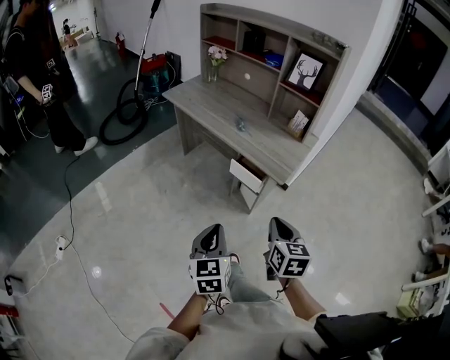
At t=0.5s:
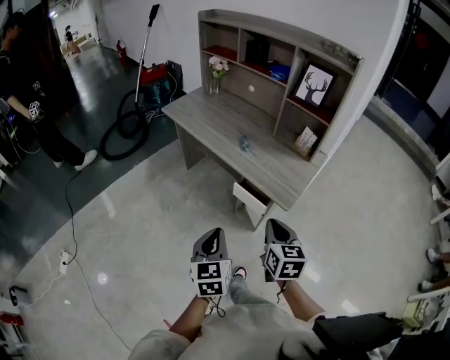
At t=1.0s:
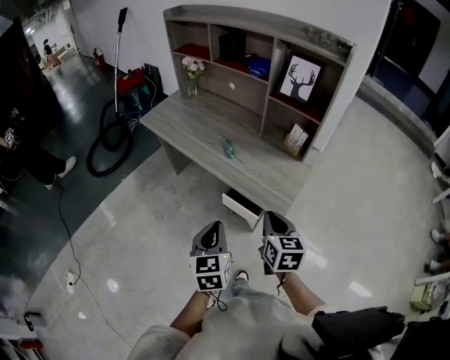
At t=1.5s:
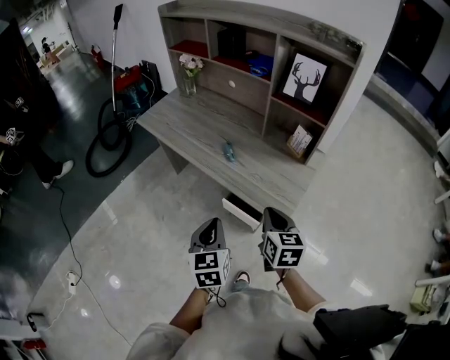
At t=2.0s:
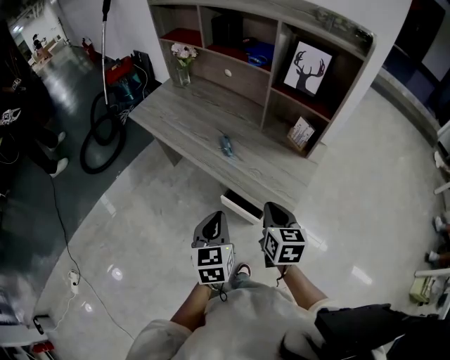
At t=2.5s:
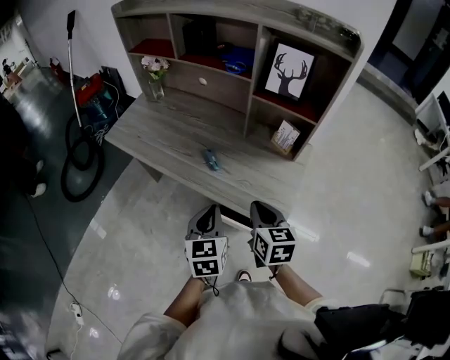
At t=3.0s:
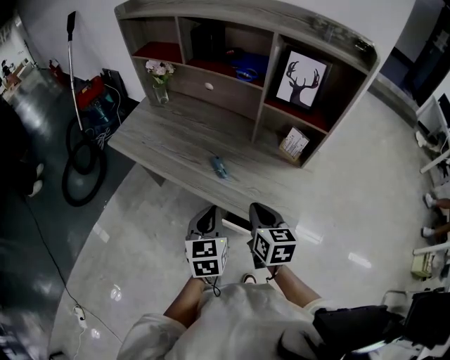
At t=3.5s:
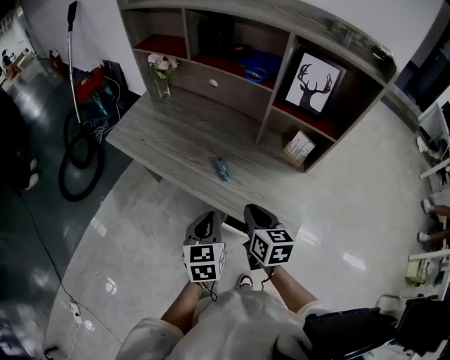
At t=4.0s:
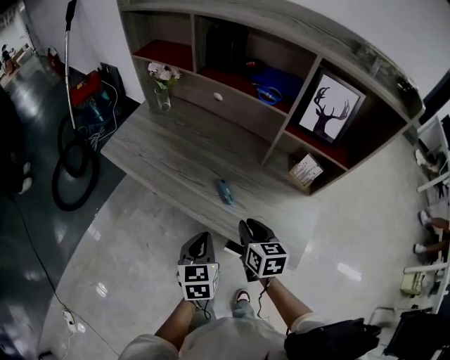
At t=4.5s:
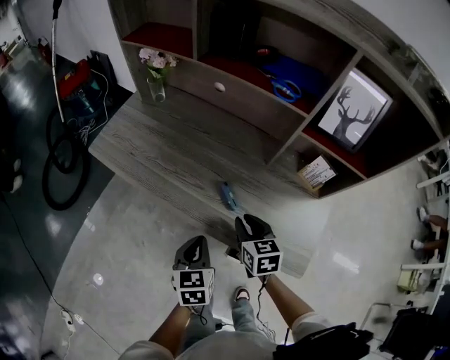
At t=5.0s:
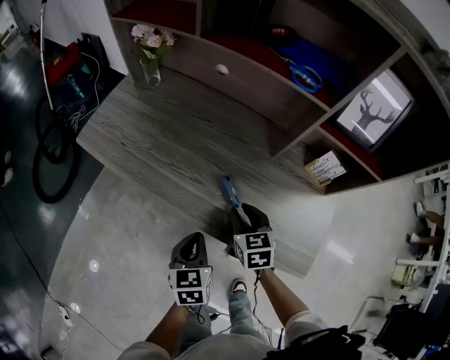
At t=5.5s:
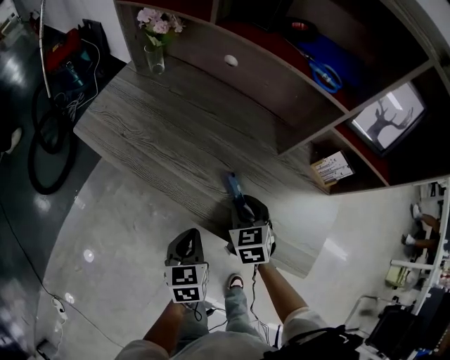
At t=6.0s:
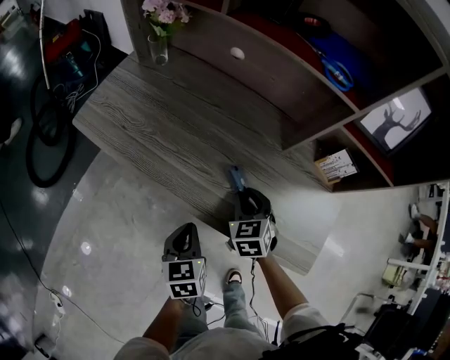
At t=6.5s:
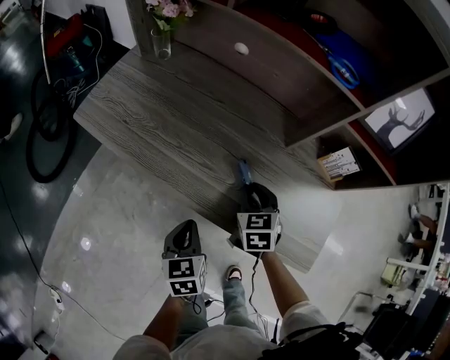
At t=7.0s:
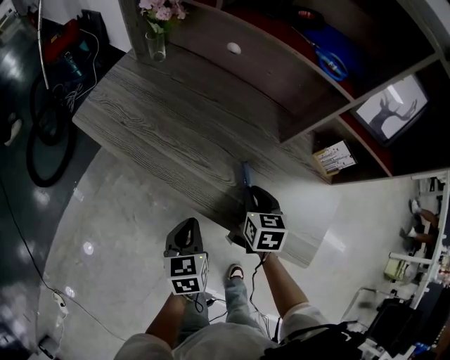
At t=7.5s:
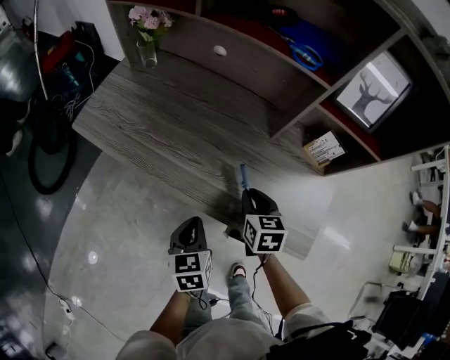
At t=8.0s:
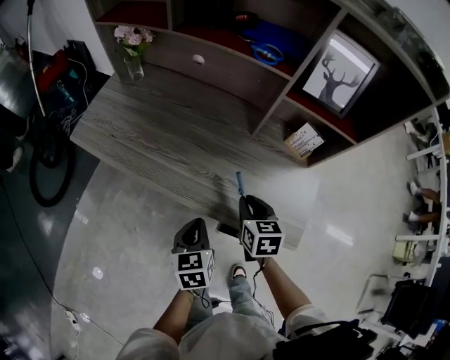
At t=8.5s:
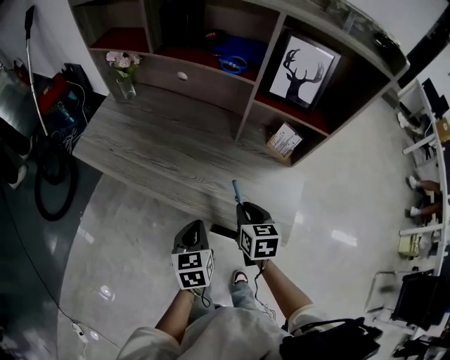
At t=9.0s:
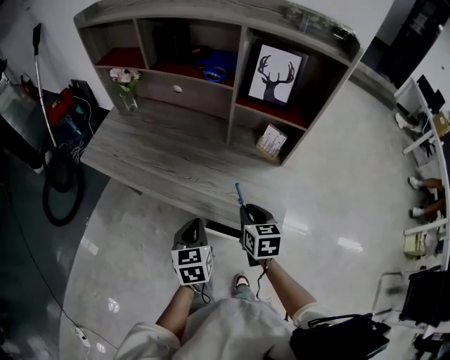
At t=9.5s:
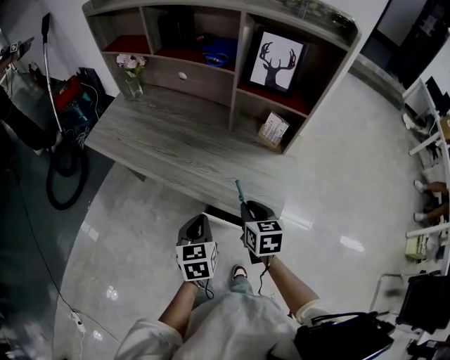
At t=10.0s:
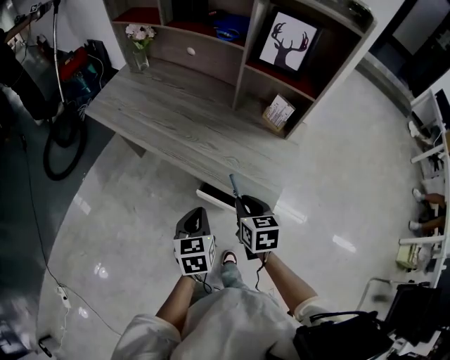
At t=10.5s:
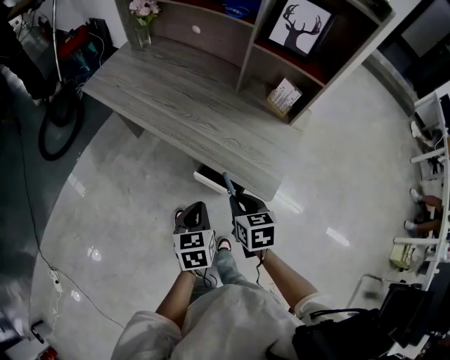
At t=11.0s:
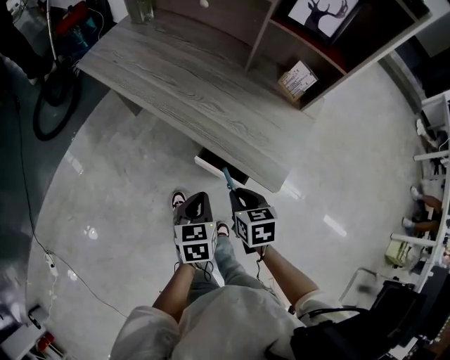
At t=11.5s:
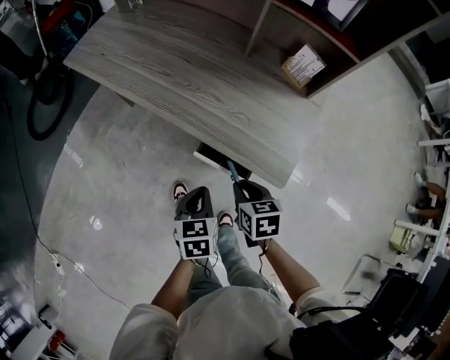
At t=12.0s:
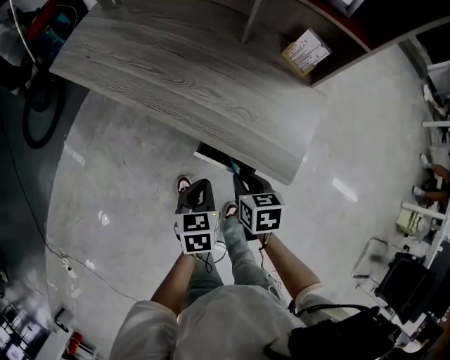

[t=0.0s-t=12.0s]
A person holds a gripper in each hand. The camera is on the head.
t=0.0s to t=2.0s: The grippers both shift forward by some 30 cm.
t=2.0s to t=4.0s: Both grippers travel together forward and to the left, approximately 20 cm.
t=4.0s to t=6.0s: The left gripper is displaced downward, to the left and forward by about 15 cm. The right gripper is displaced downward and forward by some 15 cm, and rotates approximately 40 degrees.
t=6.0s to t=8.0s: The left gripper goes about 5 cm to the right. The right gripper travels backward, to the right and upward by approximately 10 cm, and swivels about 30 degrees.
t=8.0s to t=10.0s: The two grippers go some 15 cm backward and to the right.
t=10.0s to t=12.0s: Both grippers travel together downward, some 15 cm.

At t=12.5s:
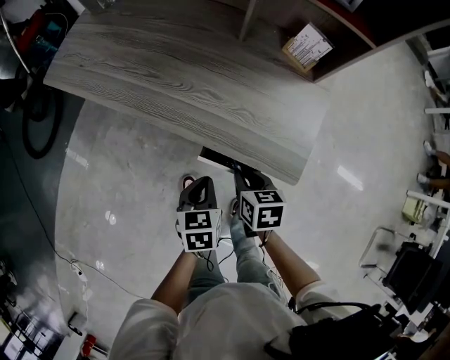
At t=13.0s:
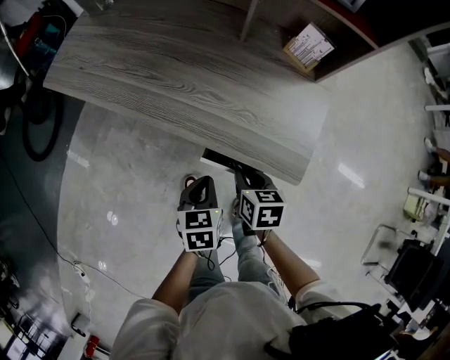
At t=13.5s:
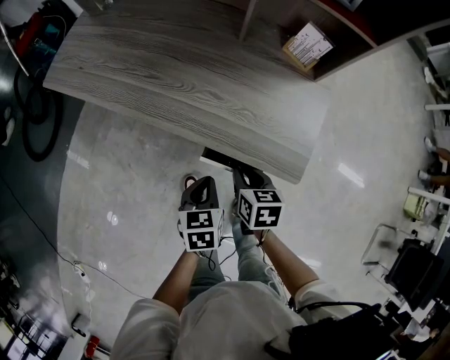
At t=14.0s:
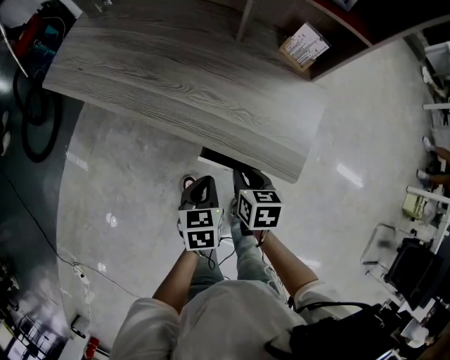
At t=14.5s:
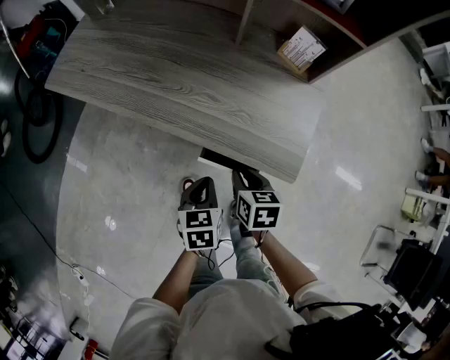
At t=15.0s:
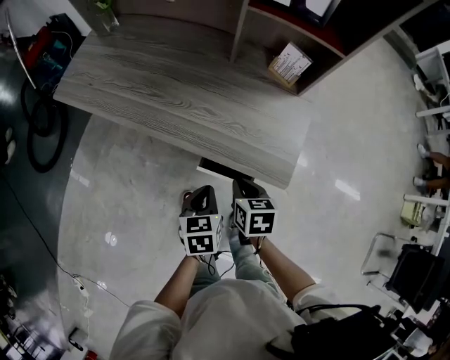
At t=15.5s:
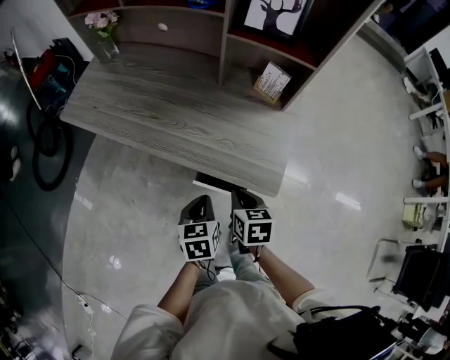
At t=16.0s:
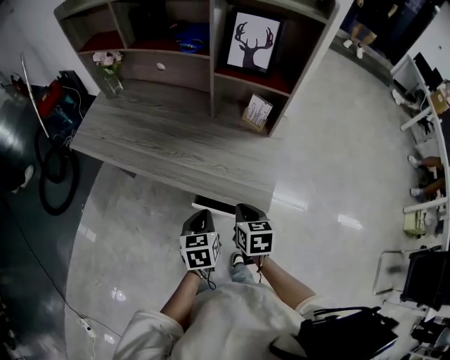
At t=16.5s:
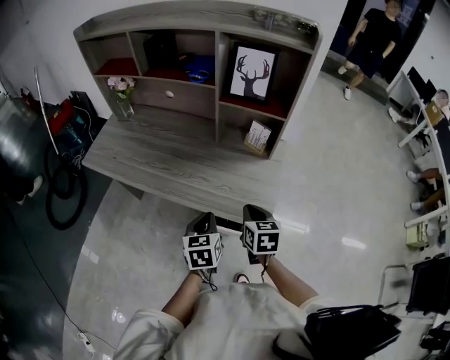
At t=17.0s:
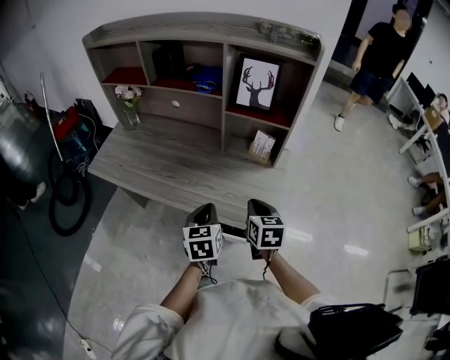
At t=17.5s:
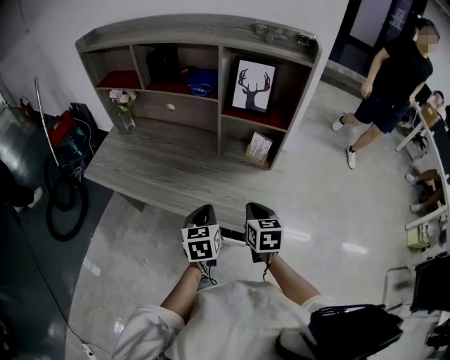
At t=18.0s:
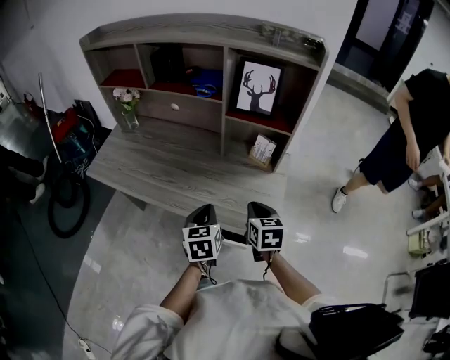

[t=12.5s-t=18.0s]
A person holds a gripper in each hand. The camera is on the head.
t=12.5s to t=14.5s: The grippers move only a little.
t=14.5s to t=16.0s: Both grippers travel together upward, roughly 10 cm.
t=16.0s to t=18.0s: The right gripper goes some 10 cm upward and forward; the left gripper goes approximately 10 cm forward and upward.

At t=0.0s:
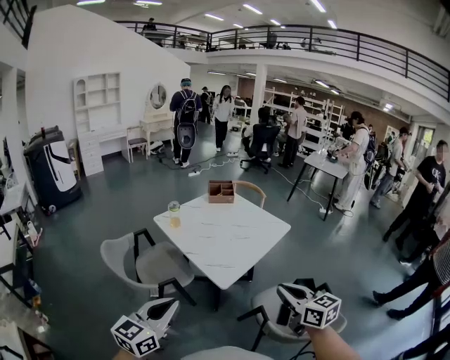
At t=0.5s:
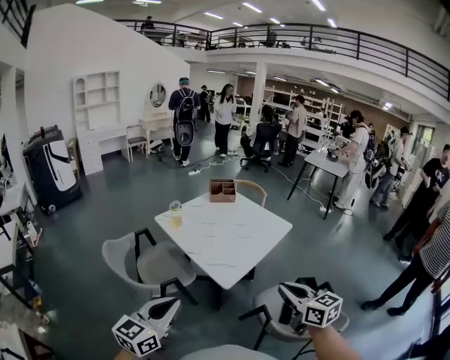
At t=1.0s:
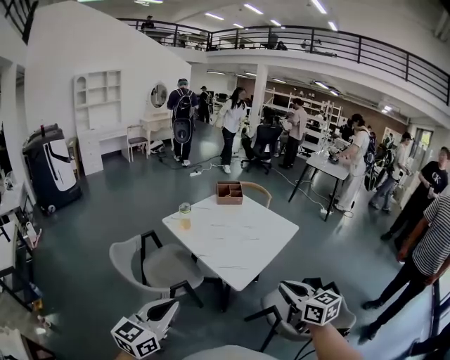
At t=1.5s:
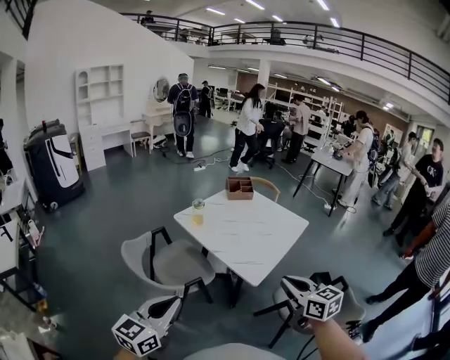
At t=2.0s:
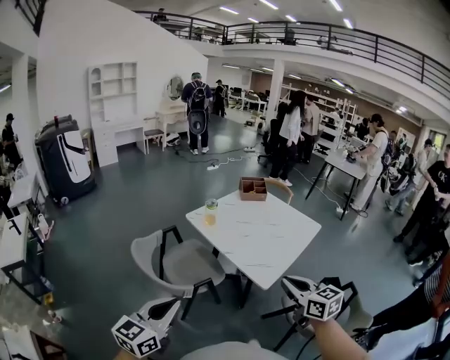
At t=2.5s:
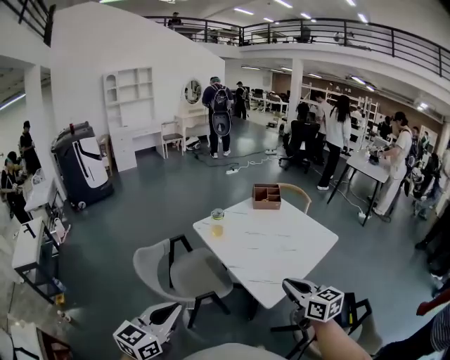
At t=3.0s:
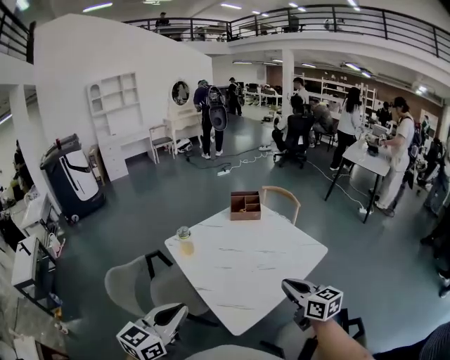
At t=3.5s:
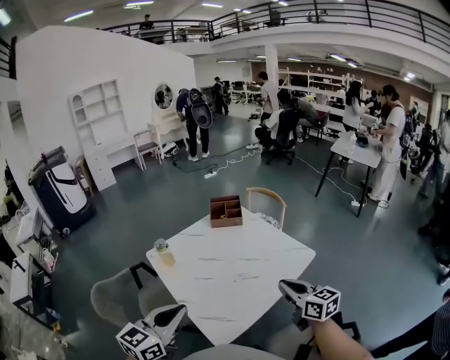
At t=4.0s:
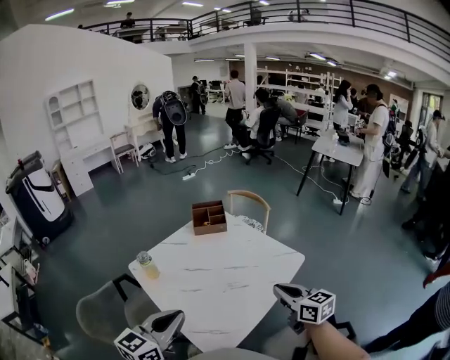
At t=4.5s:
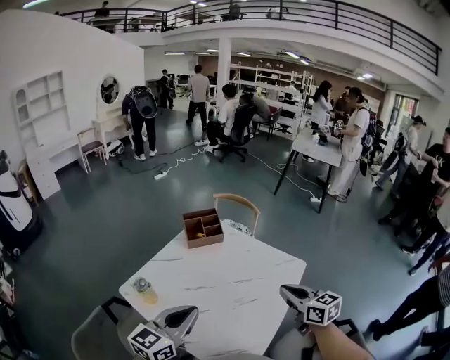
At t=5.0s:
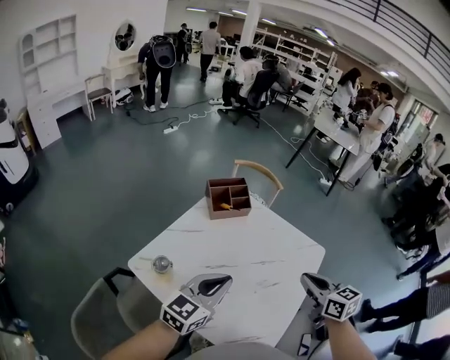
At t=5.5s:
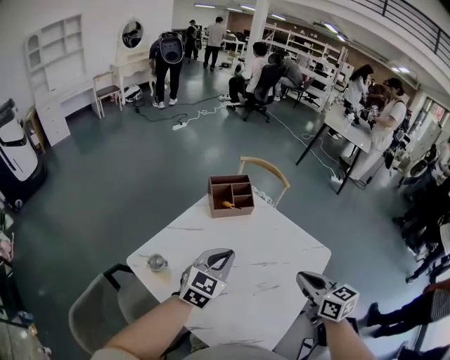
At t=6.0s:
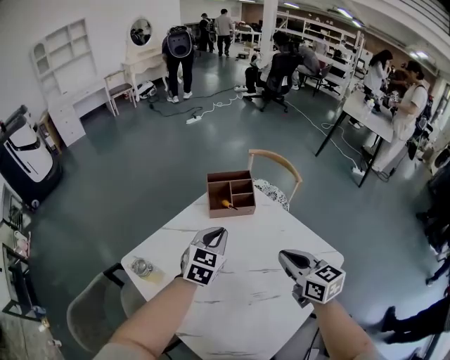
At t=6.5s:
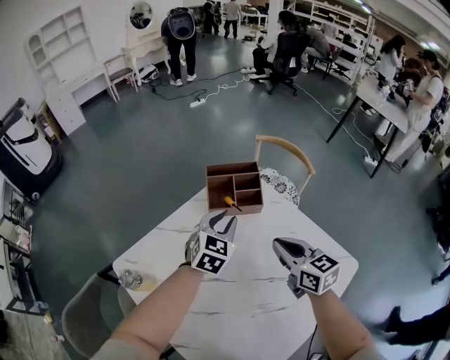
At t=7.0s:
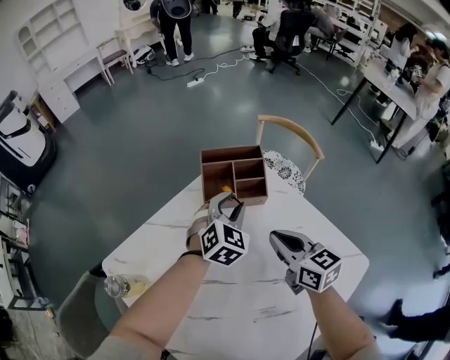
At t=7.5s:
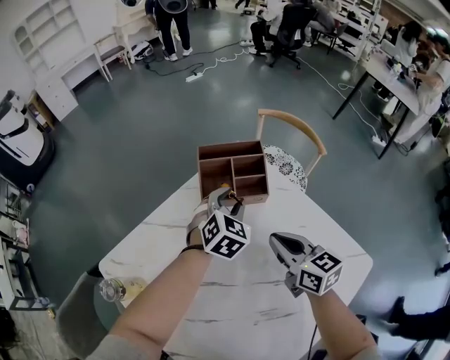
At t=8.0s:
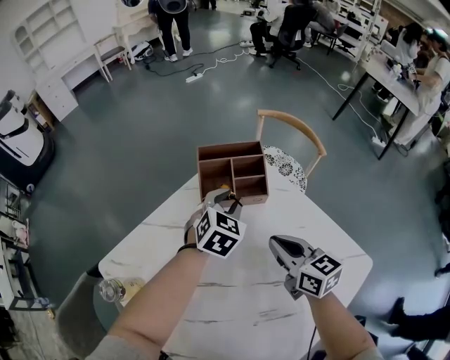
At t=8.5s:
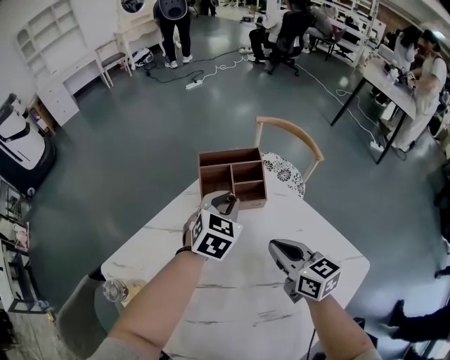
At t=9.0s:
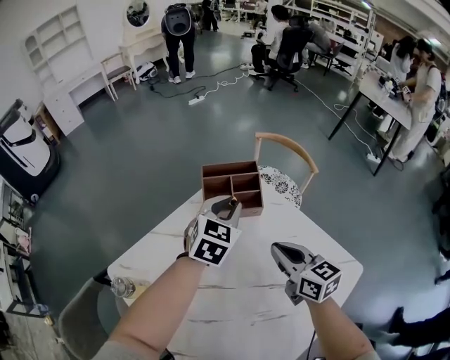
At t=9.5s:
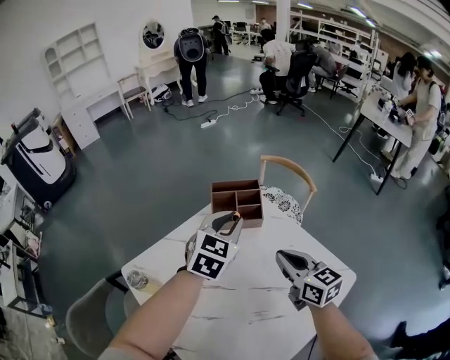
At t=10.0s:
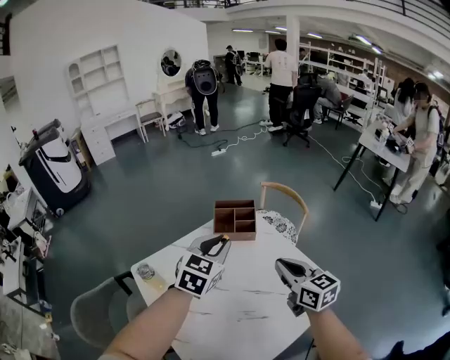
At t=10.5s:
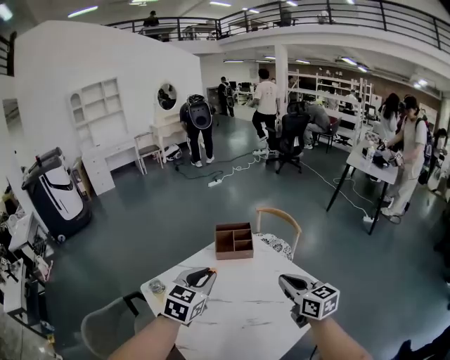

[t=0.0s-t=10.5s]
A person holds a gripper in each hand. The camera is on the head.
t=0.0s to t=2.0s: The grippers both shift to the left by some 20 cm.
t=2.0s to t=4.0s: The two grippers travel together, forward and to the right, roughly 40 cm.
t=4.0s to t=6.5s: The left gripper moves some 50 cm, and rotates roughly 30 degrees, while the right gripper ends up approximately 35 cm from where it was.
t=6.5s to t=8.5s: The right gripper travels downward by approximately 5 cm; the left gripper travels forward by approximately 5 cm.
t=8.5s to t=10.5s: The right gripper heads upward and backward, covering about 25 cm; the left gripper shifts about 35 cm backward and upward.
